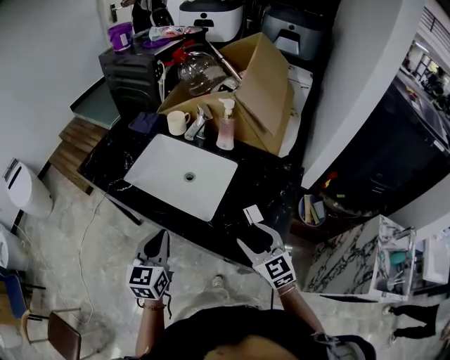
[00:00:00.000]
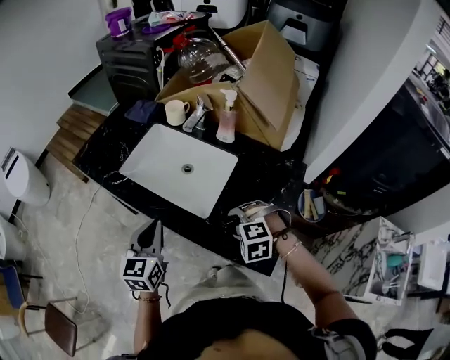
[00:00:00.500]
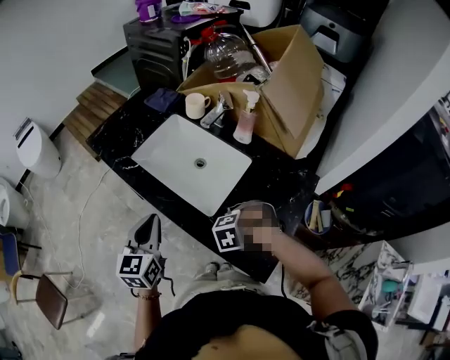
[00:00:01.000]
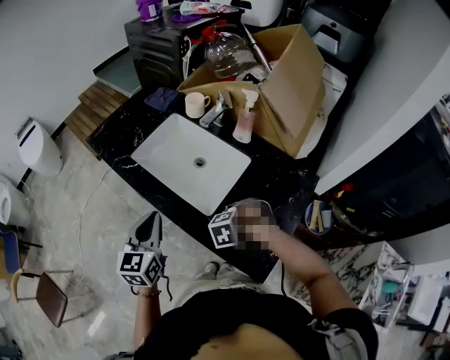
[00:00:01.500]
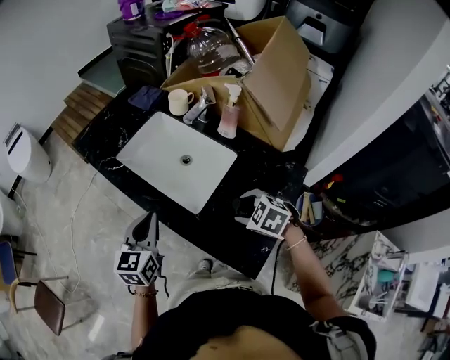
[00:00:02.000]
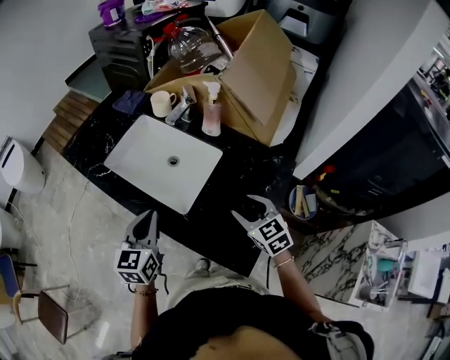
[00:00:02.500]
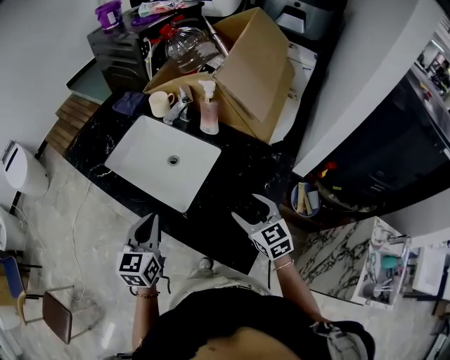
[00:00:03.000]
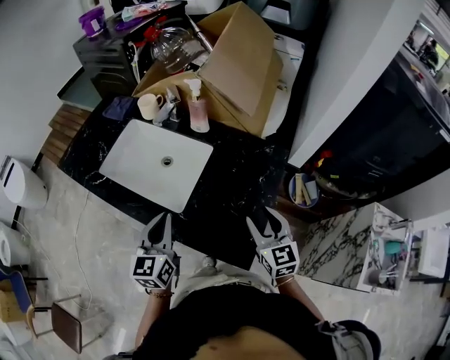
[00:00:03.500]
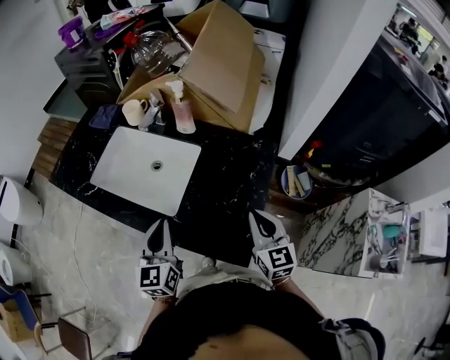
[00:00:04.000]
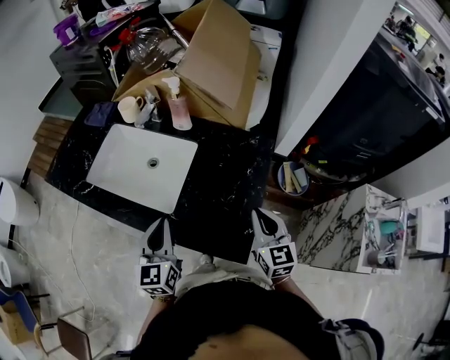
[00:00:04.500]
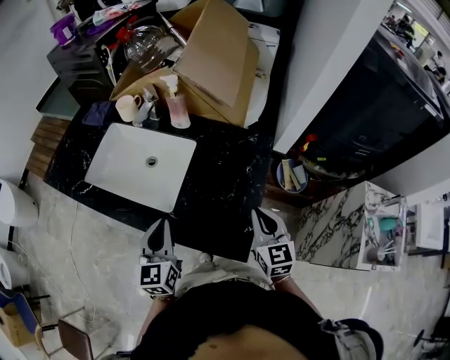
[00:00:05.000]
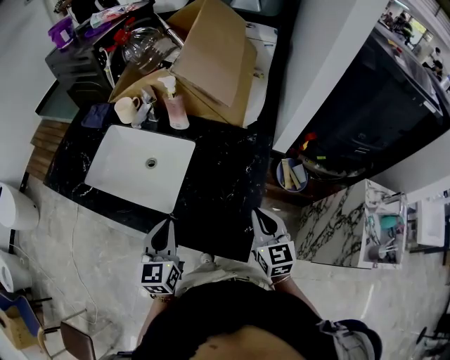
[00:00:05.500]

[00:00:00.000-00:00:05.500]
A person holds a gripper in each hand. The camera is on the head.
00:00:00.000 to 00:00:02.000: The right gripper ends up approximately 10 cm from where it was, and tips its fingers downward by roughly 40 degrees.
00:00:02.000 to 00:00:03.500: The left gripper shifts by roughly 10 cm. The right gripper moves roughly 15 cm, and tips its fingers upward by about 40 degrees.
00:00:03.500 to 00:00:05.500: The right gripper closes up.

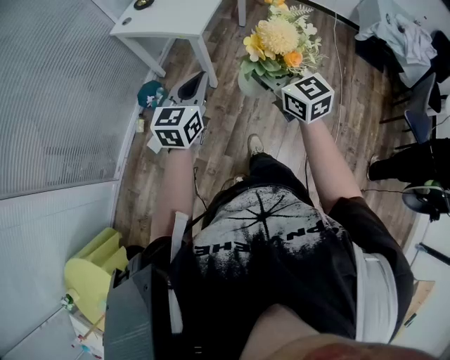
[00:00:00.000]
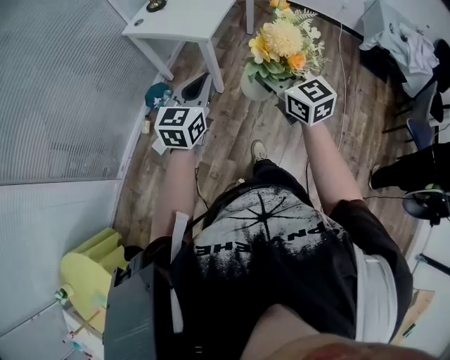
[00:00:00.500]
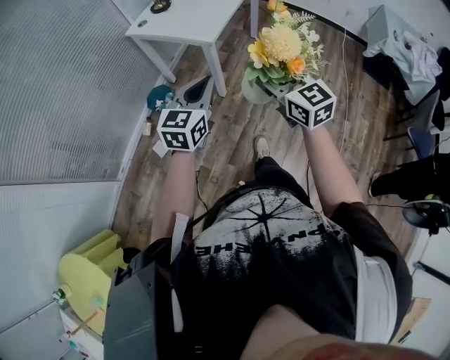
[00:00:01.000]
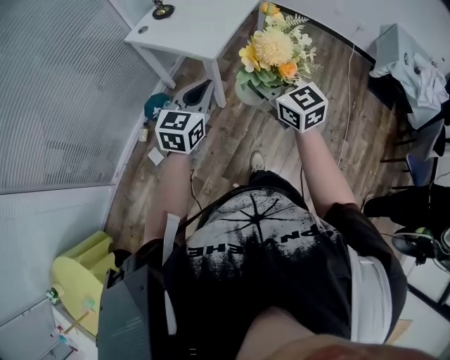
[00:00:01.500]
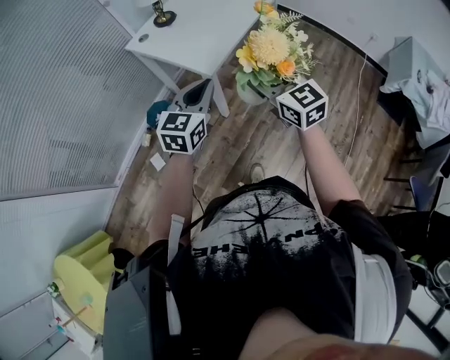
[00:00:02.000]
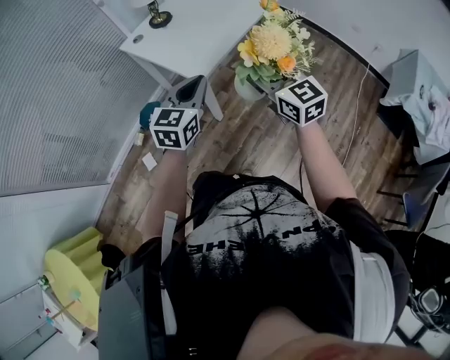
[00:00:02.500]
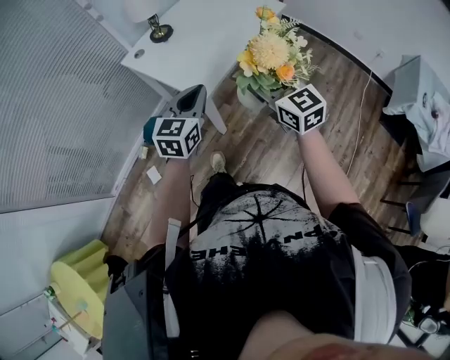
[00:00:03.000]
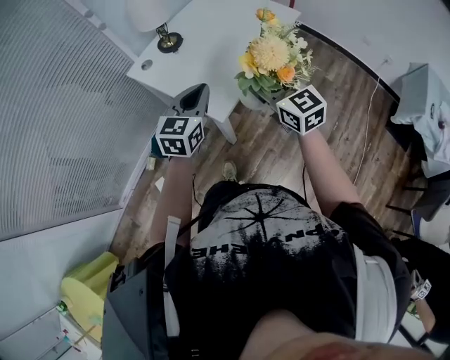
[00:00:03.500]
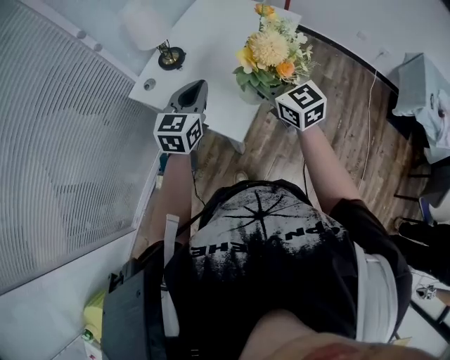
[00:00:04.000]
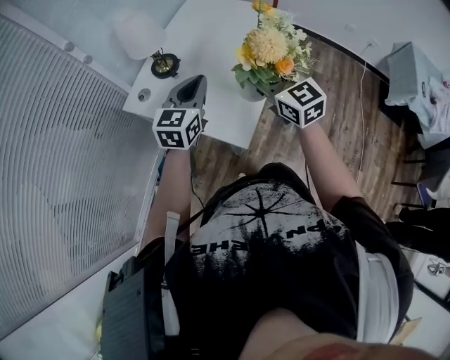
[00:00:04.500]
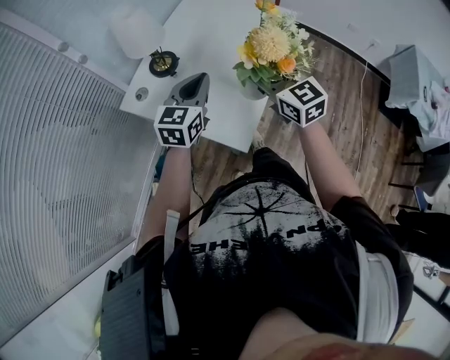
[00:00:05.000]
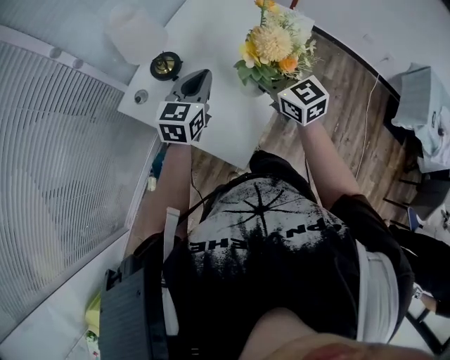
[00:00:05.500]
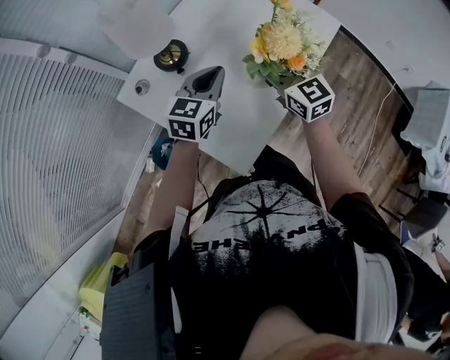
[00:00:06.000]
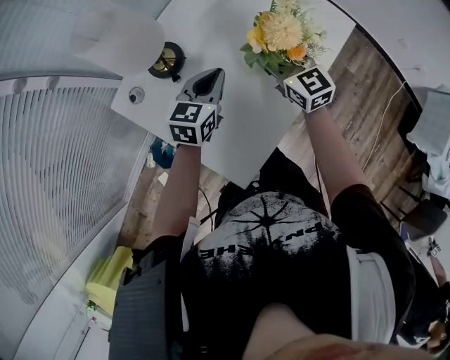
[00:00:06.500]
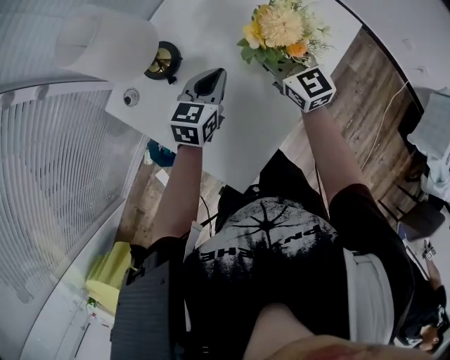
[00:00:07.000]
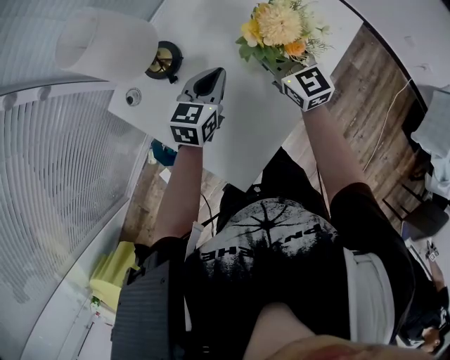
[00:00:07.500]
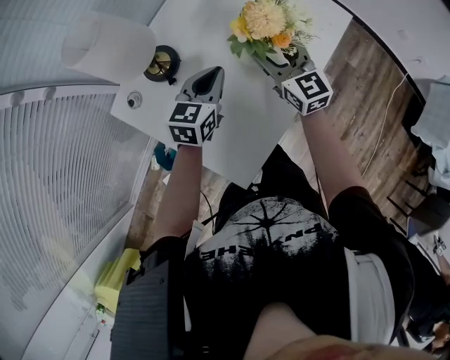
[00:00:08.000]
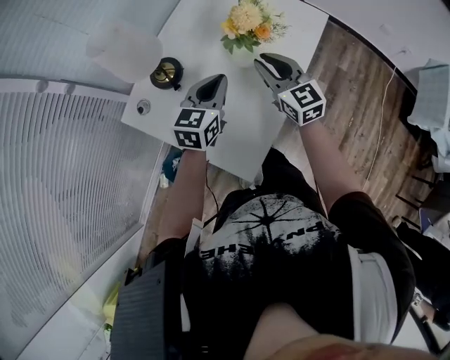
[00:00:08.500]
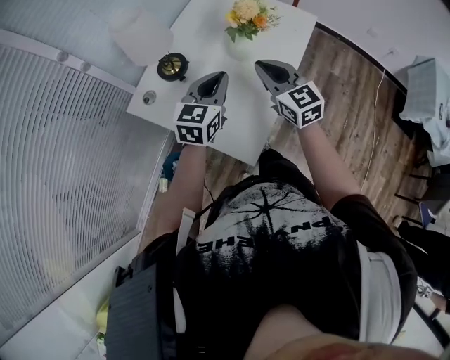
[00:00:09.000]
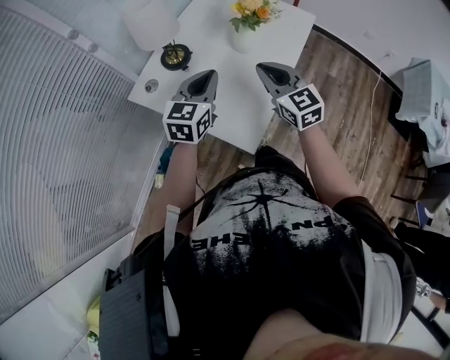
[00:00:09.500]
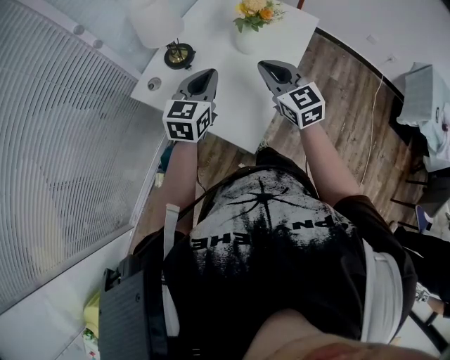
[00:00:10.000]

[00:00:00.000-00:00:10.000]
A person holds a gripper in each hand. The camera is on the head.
00:00:00.000 to 00:00:02.000: The grippers both shift forward by about 20 cm.
00:00:02.000 to 00:00:04.000: The grippers both shift forward by some 30 cm.
00:00:04.000 to 00:00:06.000: Both grippers travel together forward and downward, some 20 cm.
00:00:06.000 to 00:00:08.000: Both grippers travel together forward and downward, about 10 cm.
00:00:08.000 to 00:00:10.000: The left gripper is displaced backward and upward by approximately 20 cm. Meanwhile the right gripper shifts some 20 cm backward, and closes its fingers.

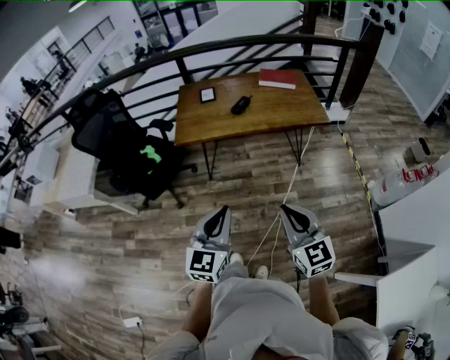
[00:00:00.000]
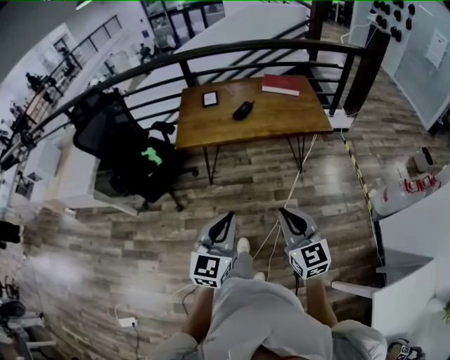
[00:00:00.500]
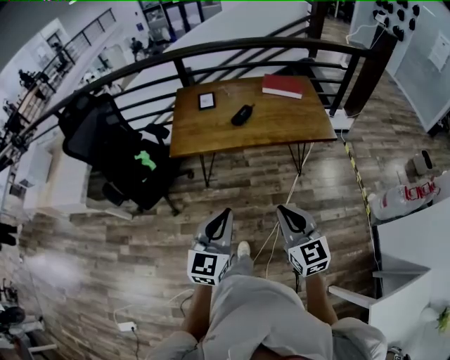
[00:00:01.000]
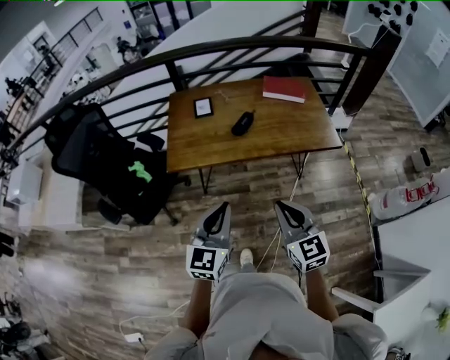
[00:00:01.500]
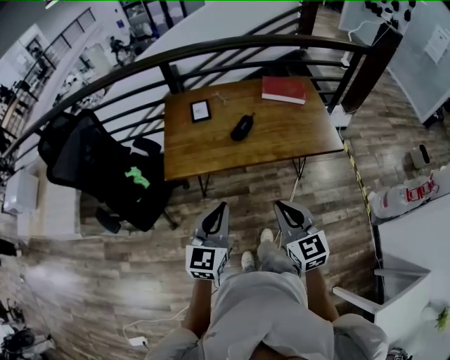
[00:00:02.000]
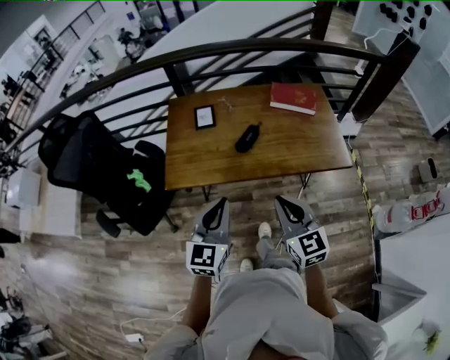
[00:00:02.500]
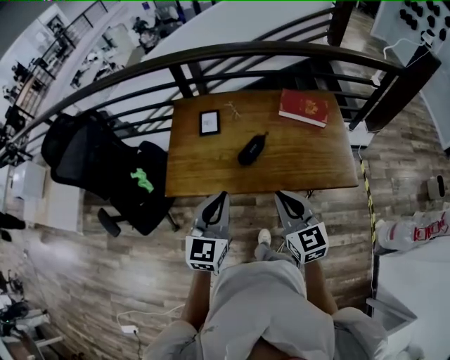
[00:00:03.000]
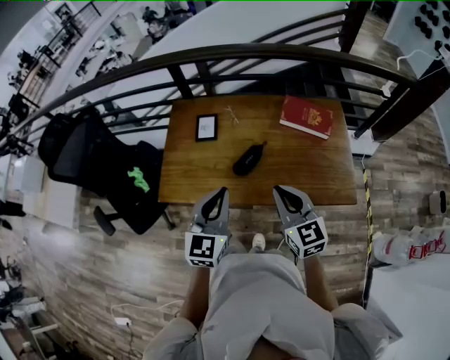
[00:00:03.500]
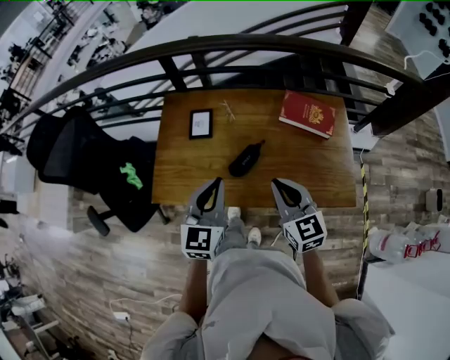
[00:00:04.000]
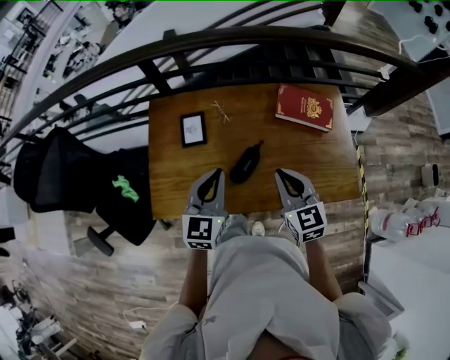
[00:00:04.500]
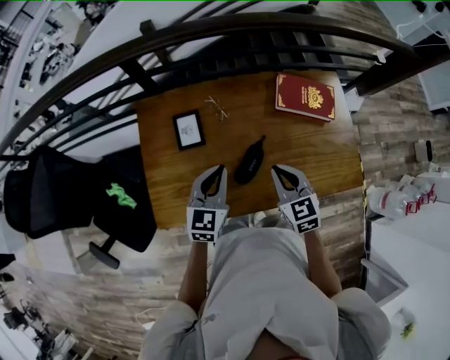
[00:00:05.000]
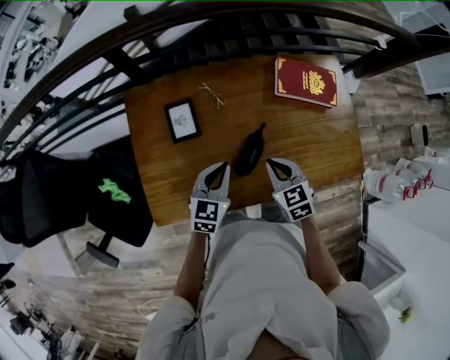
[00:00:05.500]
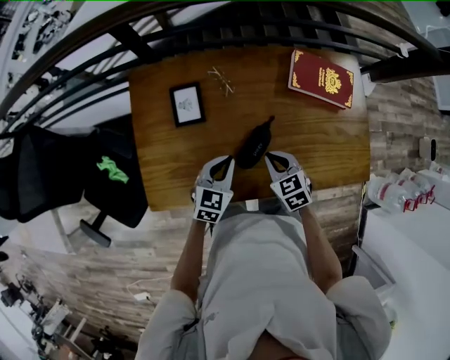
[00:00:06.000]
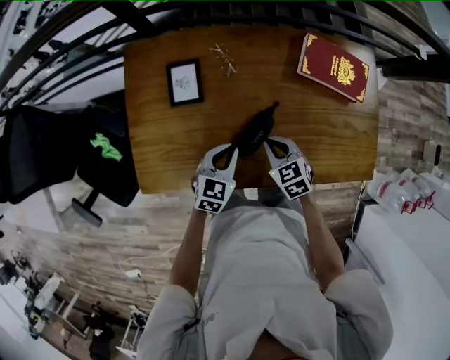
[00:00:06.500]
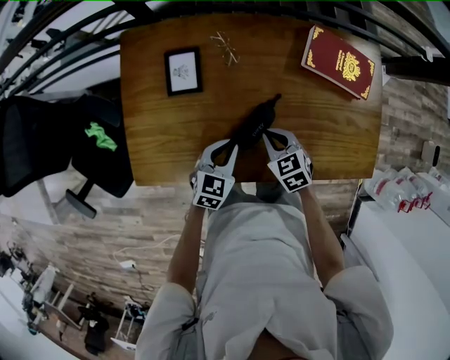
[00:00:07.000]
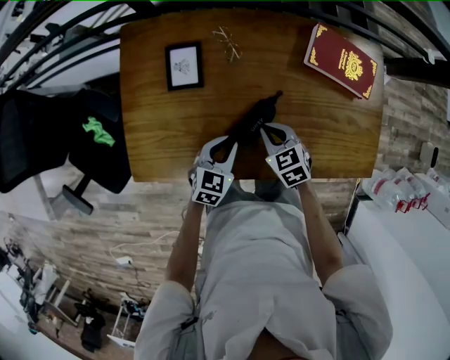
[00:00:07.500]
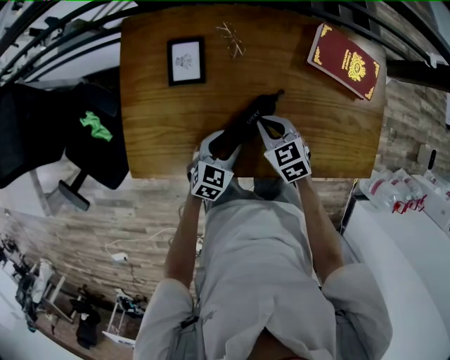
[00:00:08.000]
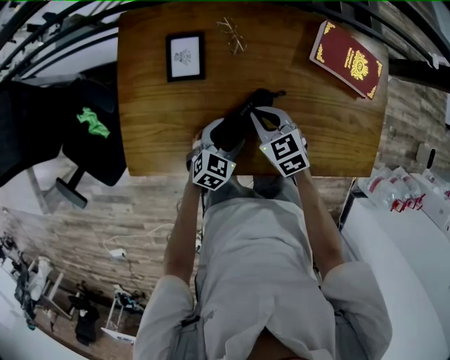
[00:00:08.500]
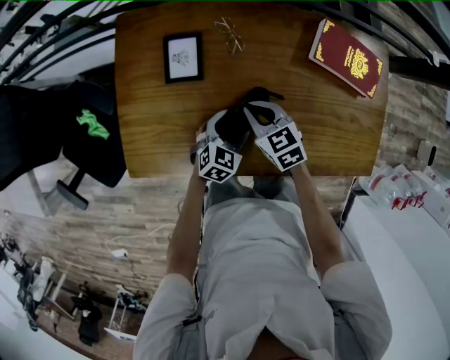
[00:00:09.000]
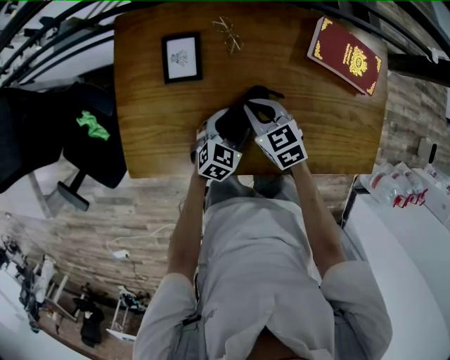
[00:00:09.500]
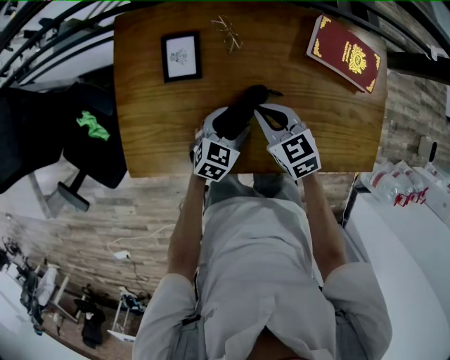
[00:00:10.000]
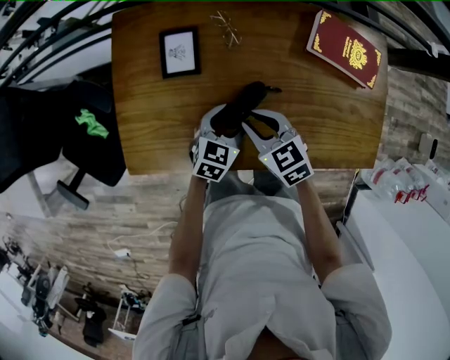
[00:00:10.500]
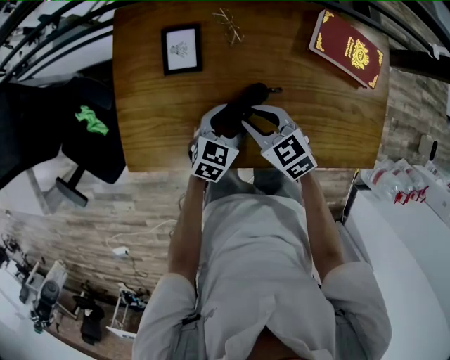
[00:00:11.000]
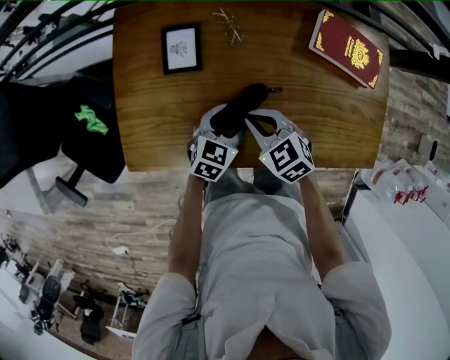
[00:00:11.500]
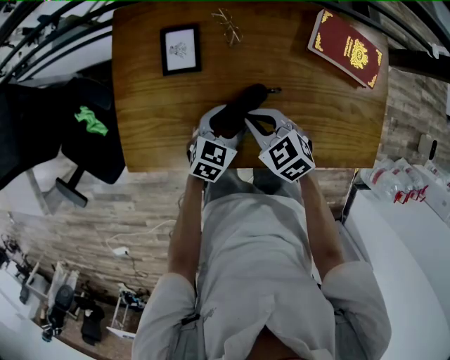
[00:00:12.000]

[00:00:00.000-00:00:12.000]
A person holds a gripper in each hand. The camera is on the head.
00:00:00.000 to 00:00:02.000: The grippers both shift forward by some 30 cm.
00:00:02.000 to 00:00:04.000: Both grippers travel together forward, about 30 cm.
00:00:04.000 to 00:00:06.000: Both grippers travel together downward and forward, approximately 25 cm. The right gripper tilts its fingers about 30 degrees downward. The left gripper rotates roughly 30 degrees.
00:00:06.000 to 00:00:08.000: The left gripper is displaced downward by roughly 10 cm, and opens up. The right gripper ends up approximately 5 cm from where it was.
00:00:08.000 to 00:00:10.000: The right gripper shifts by roughly 5 cm; the left gripper shifts by some 5 cm.
00:00:10.000 to 00:00:12.000: The right gripper opens and closes again.
